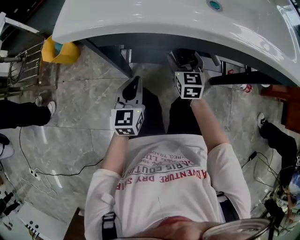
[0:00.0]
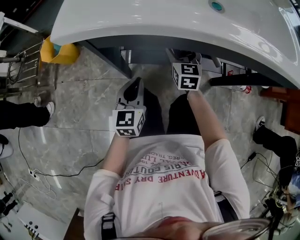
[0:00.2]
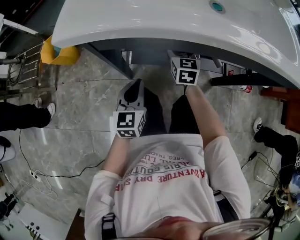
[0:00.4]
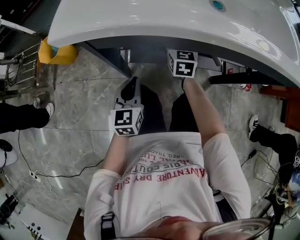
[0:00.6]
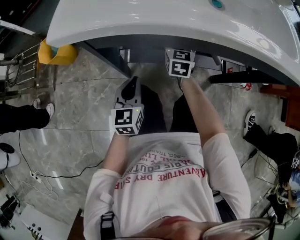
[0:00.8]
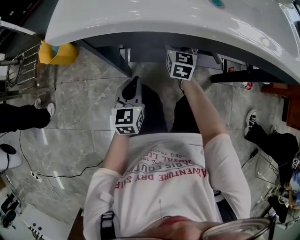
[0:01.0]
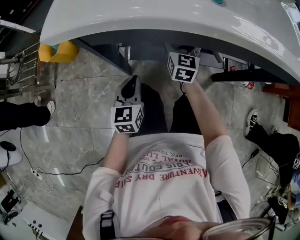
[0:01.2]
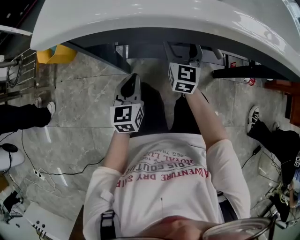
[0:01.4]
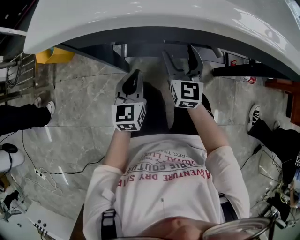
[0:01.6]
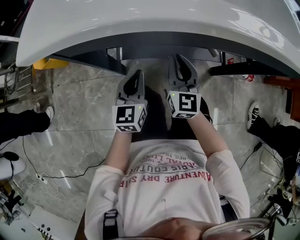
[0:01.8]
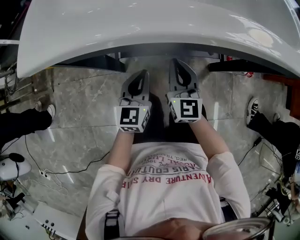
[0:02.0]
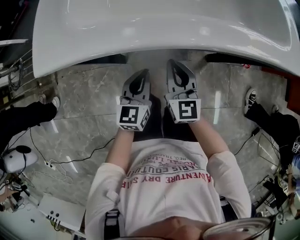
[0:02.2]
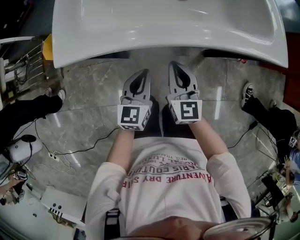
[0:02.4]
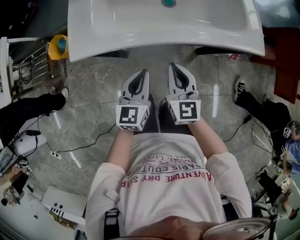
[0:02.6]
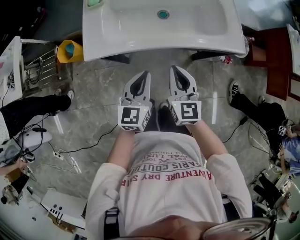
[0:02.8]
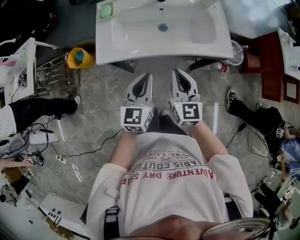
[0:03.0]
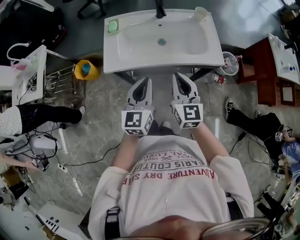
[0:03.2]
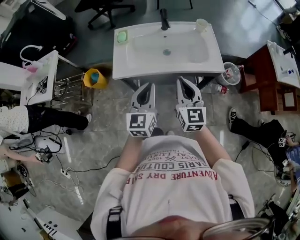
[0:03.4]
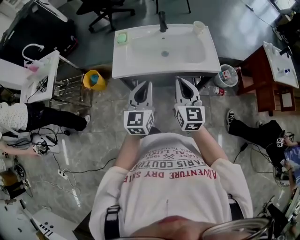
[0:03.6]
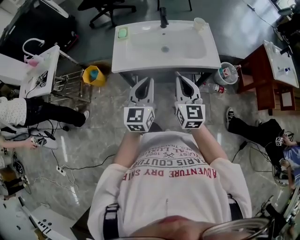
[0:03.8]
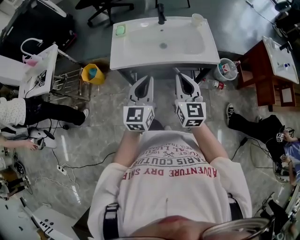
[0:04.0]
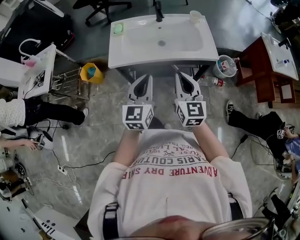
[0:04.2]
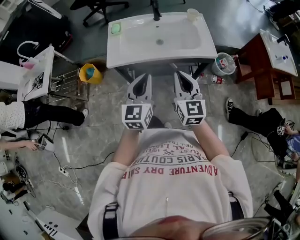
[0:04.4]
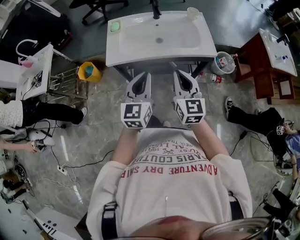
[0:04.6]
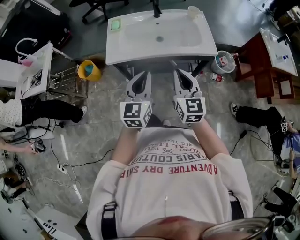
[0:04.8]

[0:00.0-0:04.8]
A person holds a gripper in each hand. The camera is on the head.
0.0 to 1.6 s: The right gripper goes forward and returns, some 10 cm each way.
1.6 to 3.2 s: Both grippers travel together upward, roughly 50 cm. The right gripper closes its fingers.
3.2 to 4.8 s: Both grippers move backward, about 10 cm.

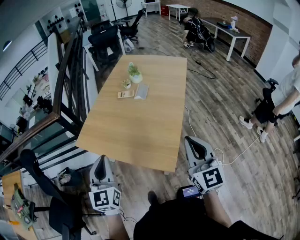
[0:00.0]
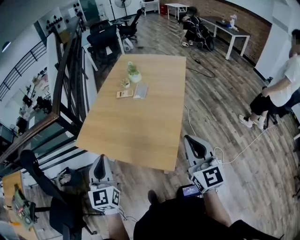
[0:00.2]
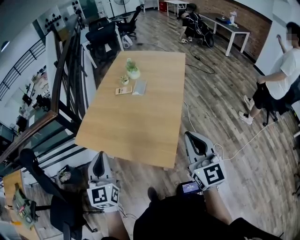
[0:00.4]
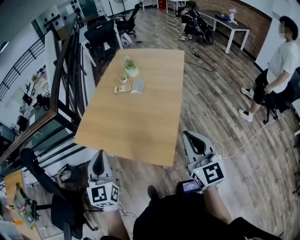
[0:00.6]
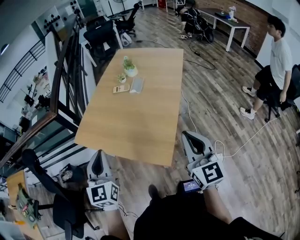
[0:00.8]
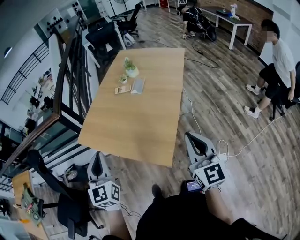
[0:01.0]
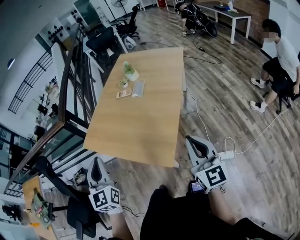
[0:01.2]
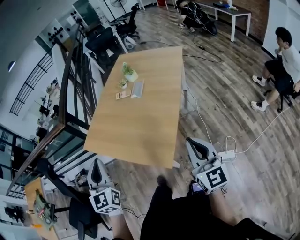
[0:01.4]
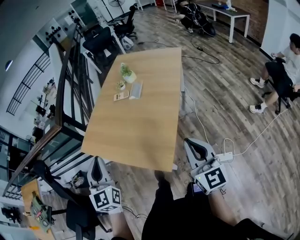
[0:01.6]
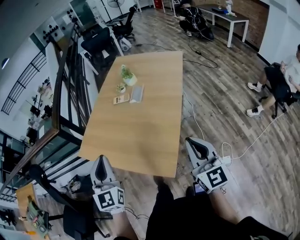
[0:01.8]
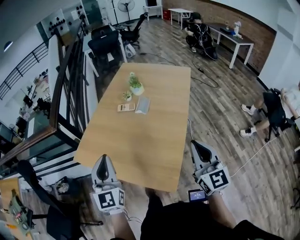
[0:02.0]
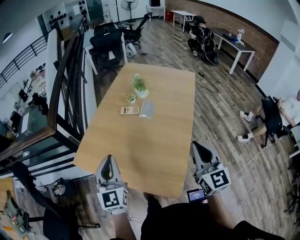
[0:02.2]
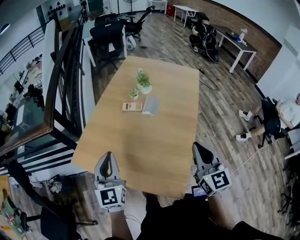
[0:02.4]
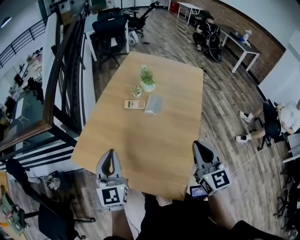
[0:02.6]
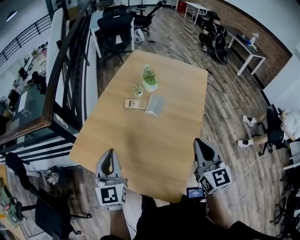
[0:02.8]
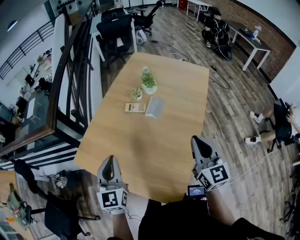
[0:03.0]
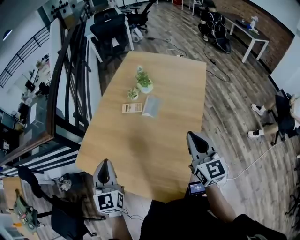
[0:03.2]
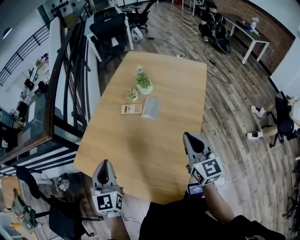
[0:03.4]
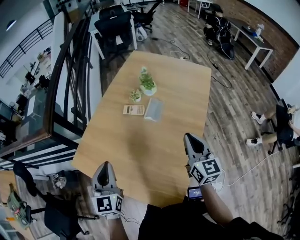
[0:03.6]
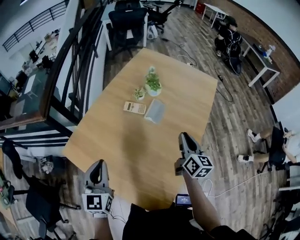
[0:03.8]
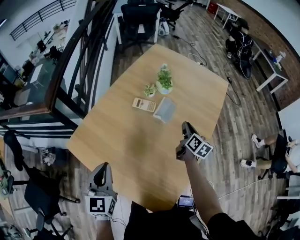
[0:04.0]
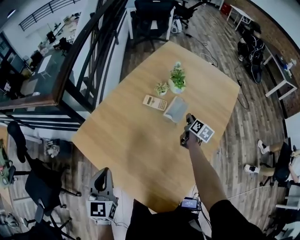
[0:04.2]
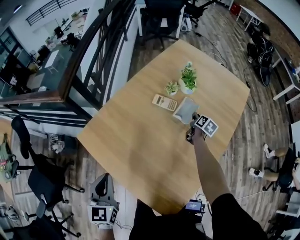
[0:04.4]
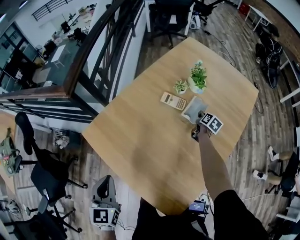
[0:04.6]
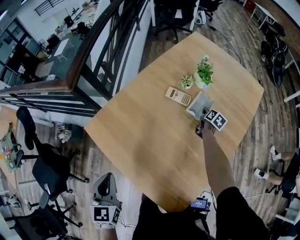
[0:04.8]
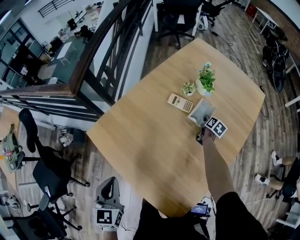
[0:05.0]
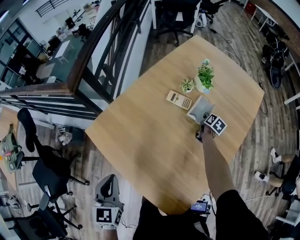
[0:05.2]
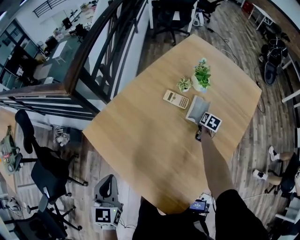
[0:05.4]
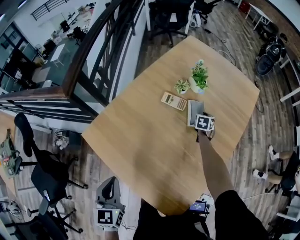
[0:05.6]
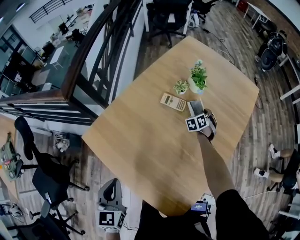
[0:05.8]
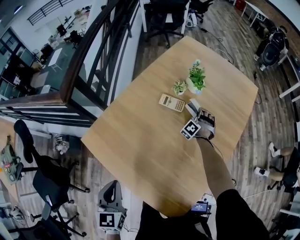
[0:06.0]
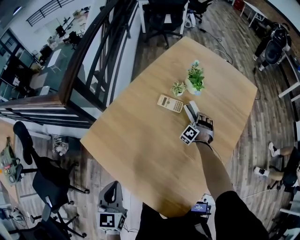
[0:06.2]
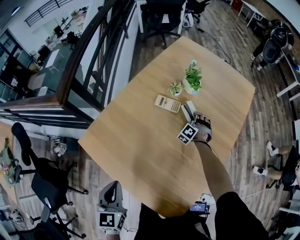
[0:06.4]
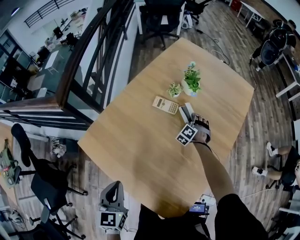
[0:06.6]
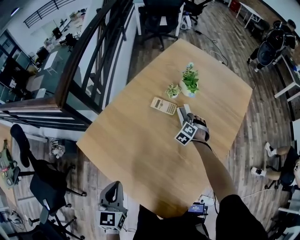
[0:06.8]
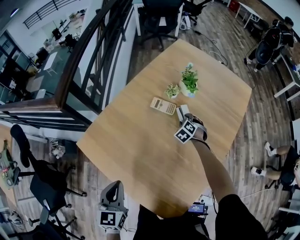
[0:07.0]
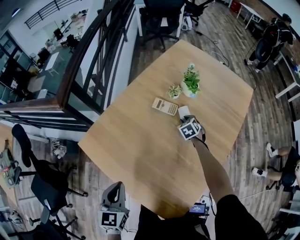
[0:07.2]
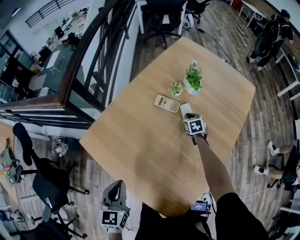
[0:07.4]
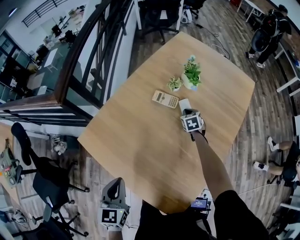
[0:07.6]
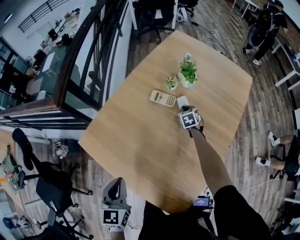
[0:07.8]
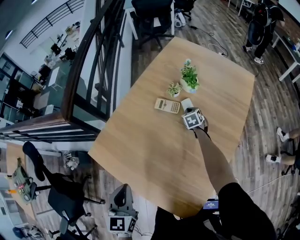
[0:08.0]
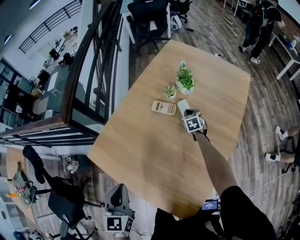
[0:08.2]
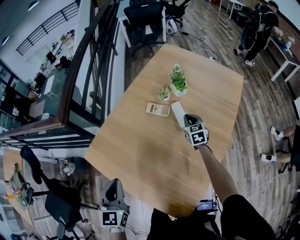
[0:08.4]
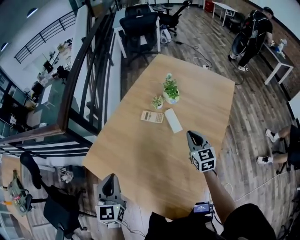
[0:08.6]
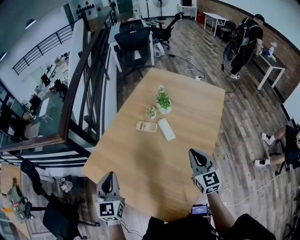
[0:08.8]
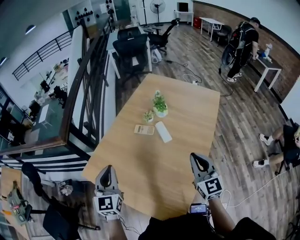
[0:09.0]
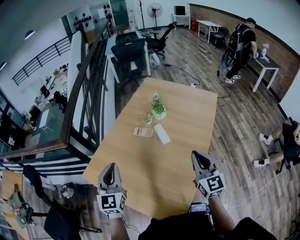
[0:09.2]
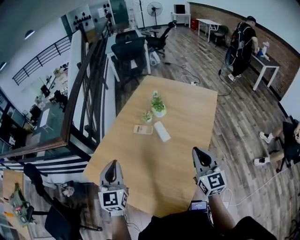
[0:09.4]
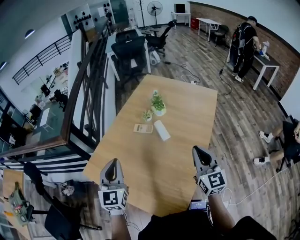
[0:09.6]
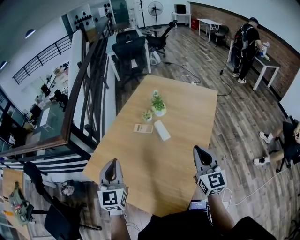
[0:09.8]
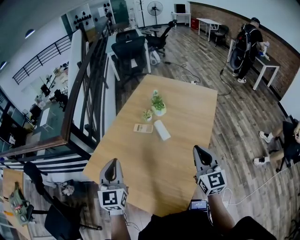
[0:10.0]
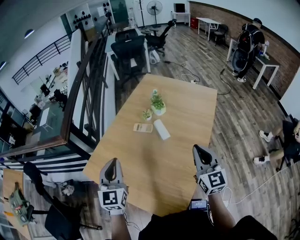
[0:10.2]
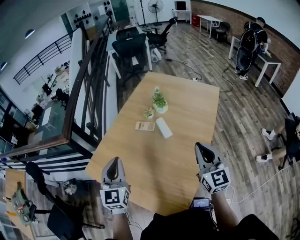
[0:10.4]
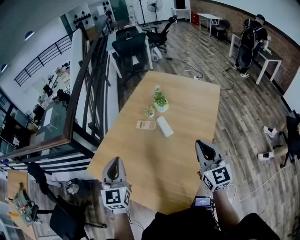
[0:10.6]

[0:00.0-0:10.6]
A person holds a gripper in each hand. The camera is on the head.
0.0 to 1.6 s: The grippers both shift to the right by about 10 cm.
1.6 to 3.0 s: The two grippers go about 25 cm forward.
3.0 to 4.6 s: The left gripper shifts about 15 cm to the left, downward and backward, and swivels some 20 degrees. Meanwhile the right gripper heads forward and downward, covering approximately 50 cm, tips its fingers downward by approximately 40 degrees, and opens.
4.6 to 6.0 s: The right gripper rolls counterclockwise, seen from behind, by roughly 110 degrees, and closes up.
6.0 to 7.6 s: The right gripper heads to the left, covering approximately 5 cm, swivels some 70 degrees, and opens and closes again.
7.6 to 9.0 s: The left gripper travels upward and forward by approximately 15 cm, and rotates roughly 30 degrees. Meanwhile the right gripper moves upward and backward, some 40 cm, and angles its fingers upward, by some 50 degrees.
9.0 to 10.6 s: The right gripper ends up approximately 5 cm from where it was, while the left gripper ends up about 5 cm from where it was.

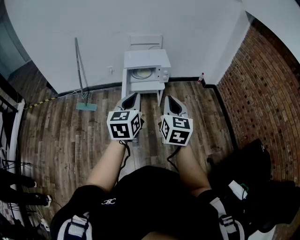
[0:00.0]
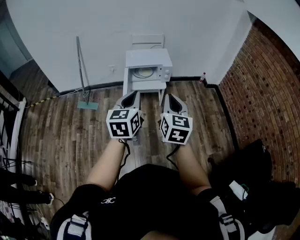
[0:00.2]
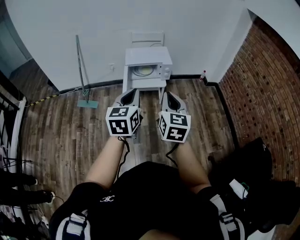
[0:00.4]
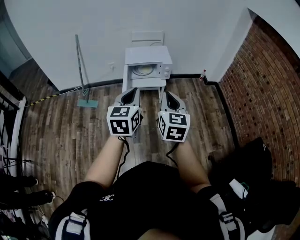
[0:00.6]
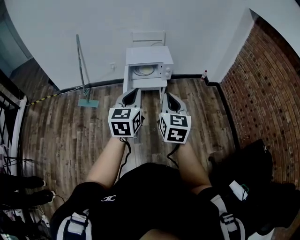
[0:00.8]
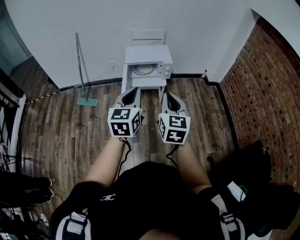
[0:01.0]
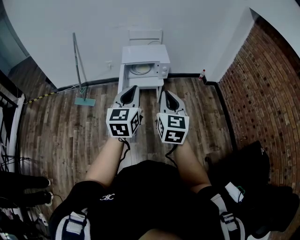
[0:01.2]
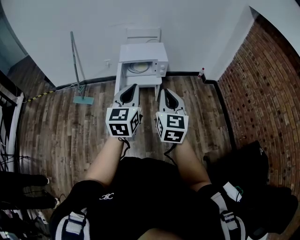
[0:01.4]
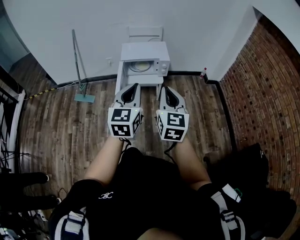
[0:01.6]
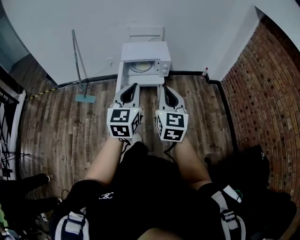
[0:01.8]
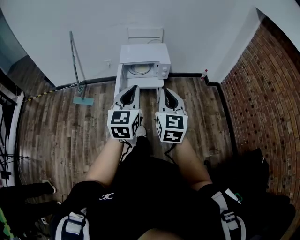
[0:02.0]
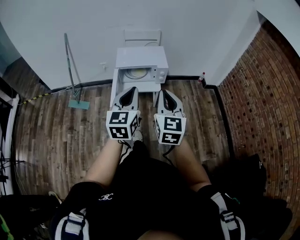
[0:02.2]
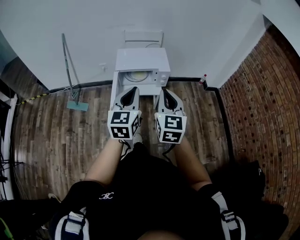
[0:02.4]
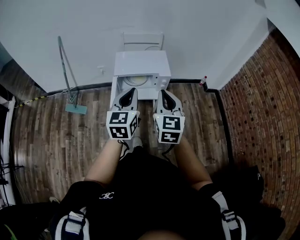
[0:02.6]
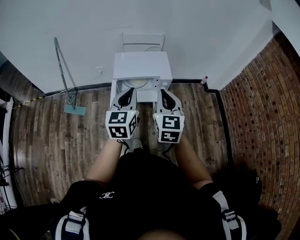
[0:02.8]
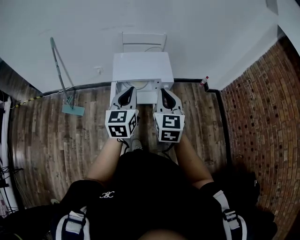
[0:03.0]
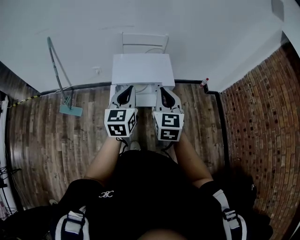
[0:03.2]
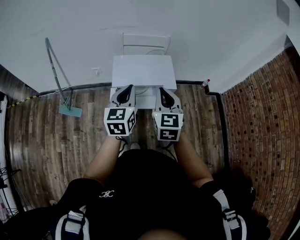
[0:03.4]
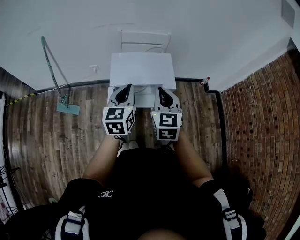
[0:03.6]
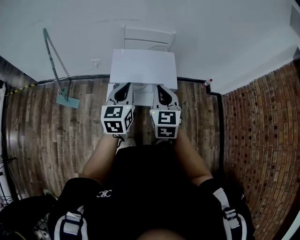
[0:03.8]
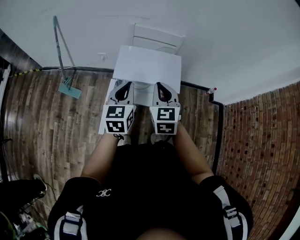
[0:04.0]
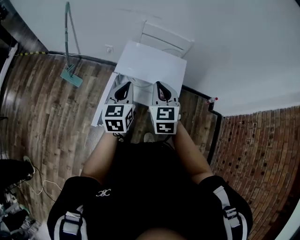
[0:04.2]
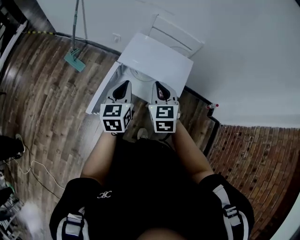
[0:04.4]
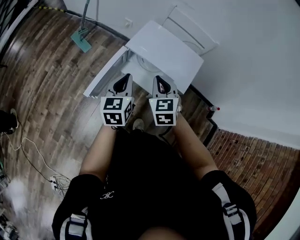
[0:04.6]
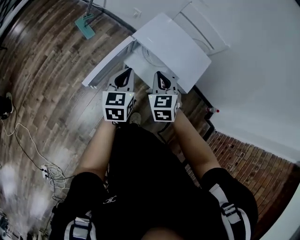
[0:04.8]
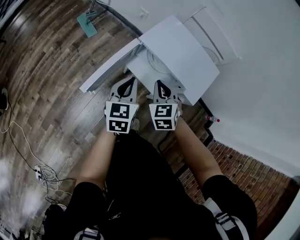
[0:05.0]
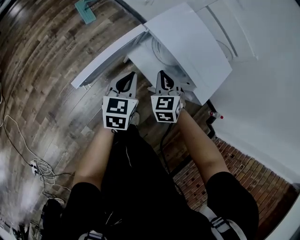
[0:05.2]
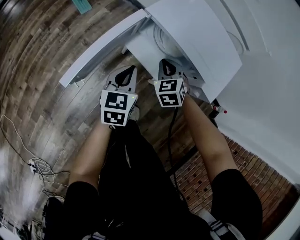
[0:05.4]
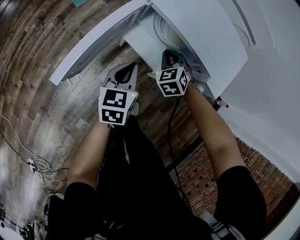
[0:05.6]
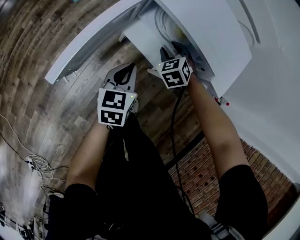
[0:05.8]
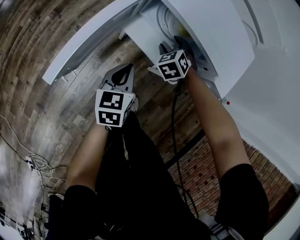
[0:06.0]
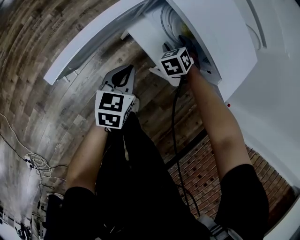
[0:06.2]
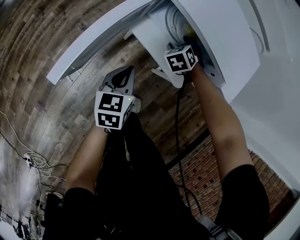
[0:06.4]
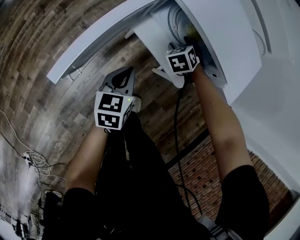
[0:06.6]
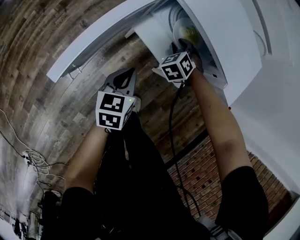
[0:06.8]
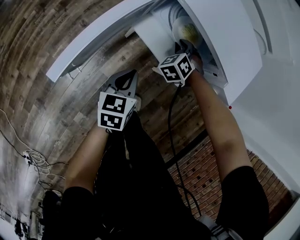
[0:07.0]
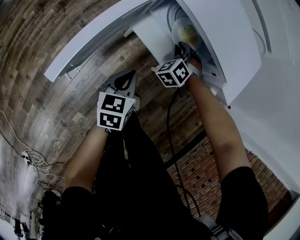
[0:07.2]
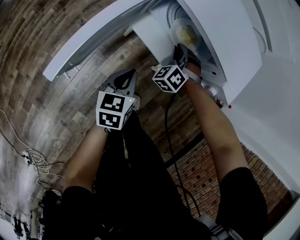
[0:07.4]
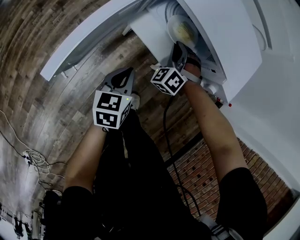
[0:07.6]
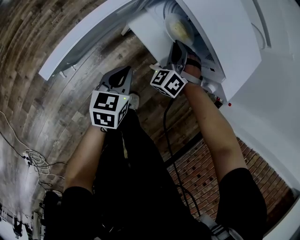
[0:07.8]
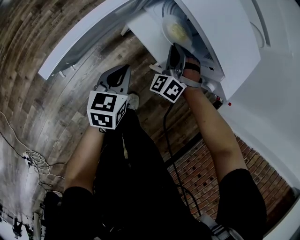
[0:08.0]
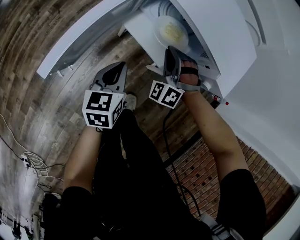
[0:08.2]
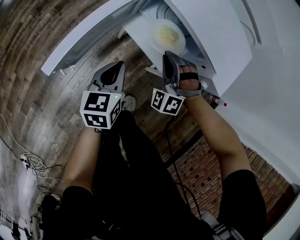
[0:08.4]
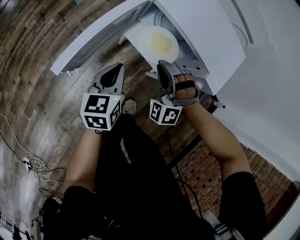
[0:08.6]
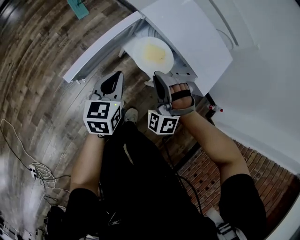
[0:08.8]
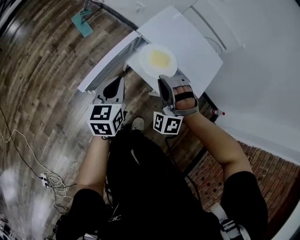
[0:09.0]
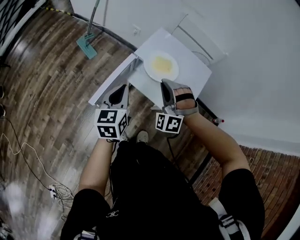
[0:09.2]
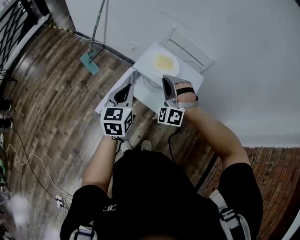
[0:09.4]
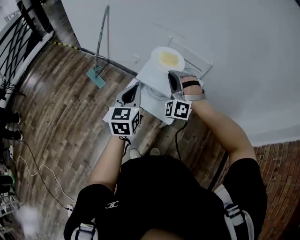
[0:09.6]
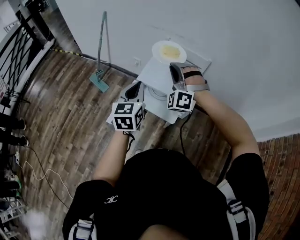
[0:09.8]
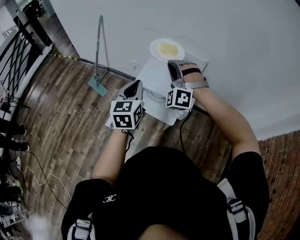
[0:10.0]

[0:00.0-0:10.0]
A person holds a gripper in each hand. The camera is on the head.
0.0 to 1.4 s: The left gripper moves some 5 cm.
1.4 to 2.8 s: The grippers both shift forward by some 30 cm.
2.8 to 4.2 s: The right gripper heads forward, covering roughly 20 cm, and turns by some 30 degrees, while the left gripper moves forward and downward, approximately 15 cm, and rotates some 20 degrees.
4.2 to 5.8 s: The two grippers go about 40 cm downward. The right gripper tips its fingers downward by approximately 30 degrees, and opens up; the left gripper changes its angle by about 20 degrees.
5.8 to 7.2 s: The right gripper changes its angle by approximately 20 degrees, and closes its fingers; the left gripper ends up approximately 5 cm from where it was.
7.2 to 8.6 s: The left gripper travels upward by roughly 10 cm. The right gripper shifts approximately 20 cm upward and backward, and swivels some 40 degrees.
8.6 to 10.0 s: Both grippers travel together upward, some 40 cm. The left gripper turns by roughly 30 degrees; the right gripper turns by roughly 20 degrees.
